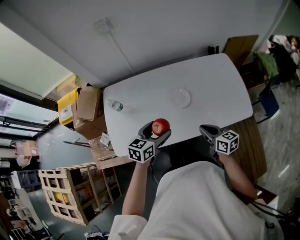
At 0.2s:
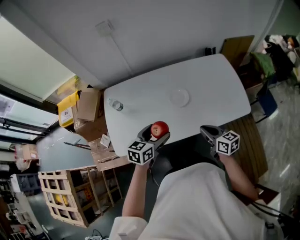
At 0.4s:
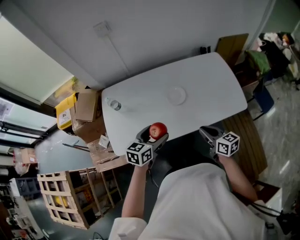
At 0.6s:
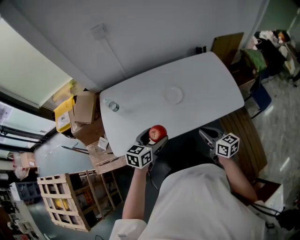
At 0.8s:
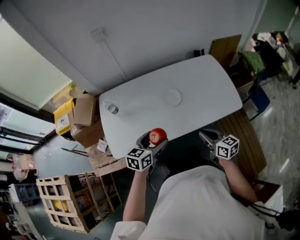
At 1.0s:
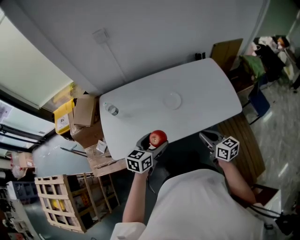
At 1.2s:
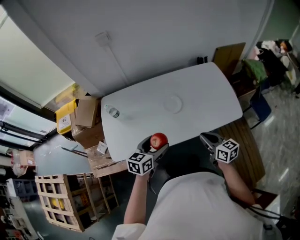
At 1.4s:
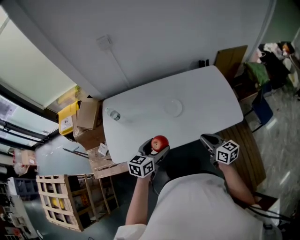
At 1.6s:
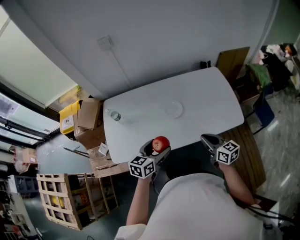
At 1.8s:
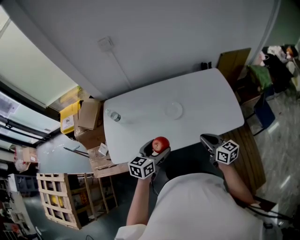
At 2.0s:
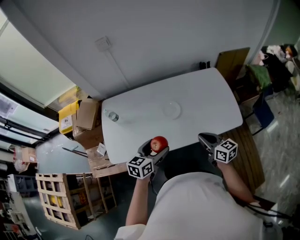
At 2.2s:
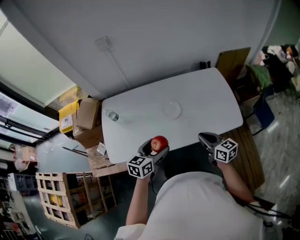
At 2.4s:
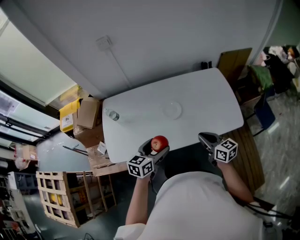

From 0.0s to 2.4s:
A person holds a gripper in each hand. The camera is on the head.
From 0.0s to 1.2s: Both grippers move backward, some 5 cm.
From 1.2s to 2.4s: The right gripper changes place by some 5 cm.

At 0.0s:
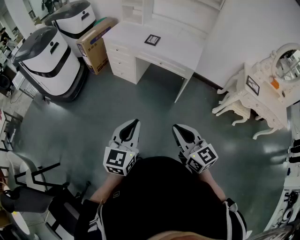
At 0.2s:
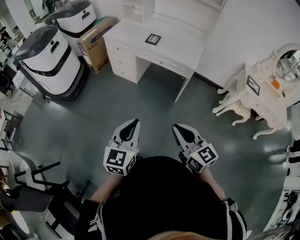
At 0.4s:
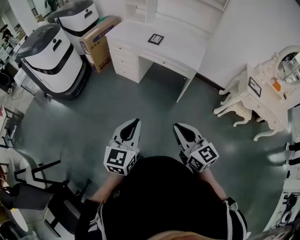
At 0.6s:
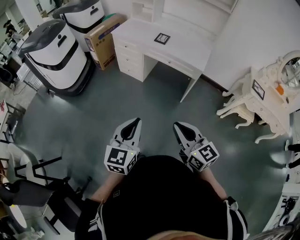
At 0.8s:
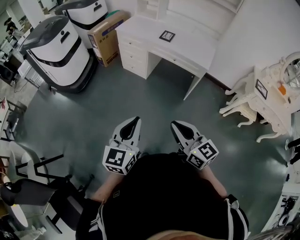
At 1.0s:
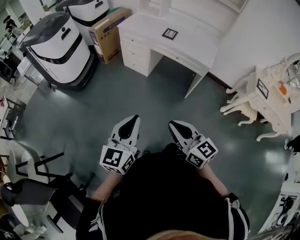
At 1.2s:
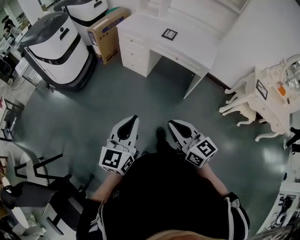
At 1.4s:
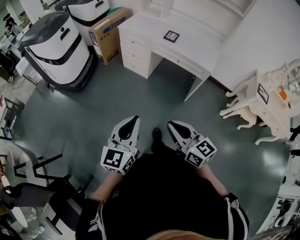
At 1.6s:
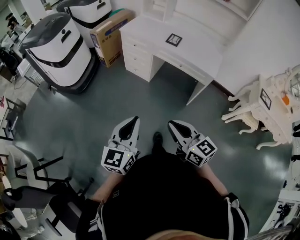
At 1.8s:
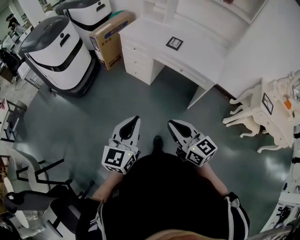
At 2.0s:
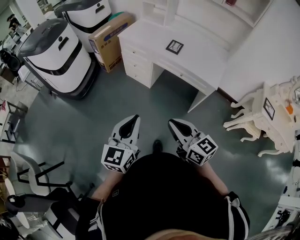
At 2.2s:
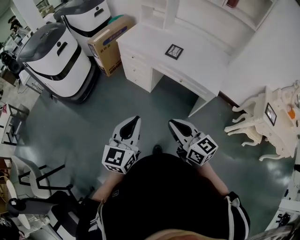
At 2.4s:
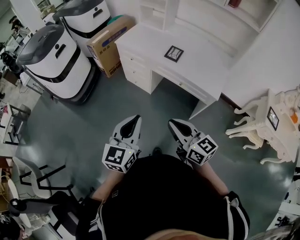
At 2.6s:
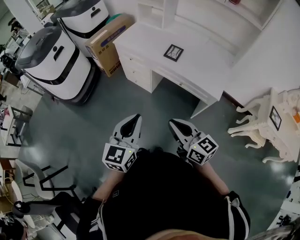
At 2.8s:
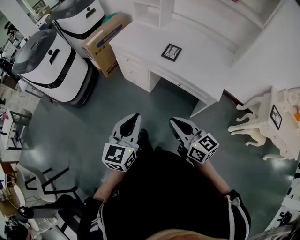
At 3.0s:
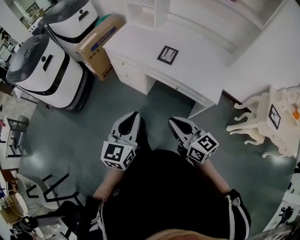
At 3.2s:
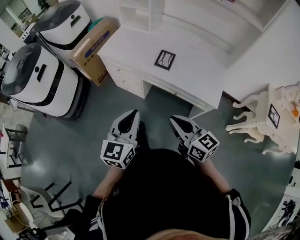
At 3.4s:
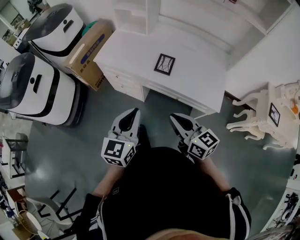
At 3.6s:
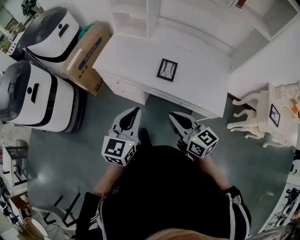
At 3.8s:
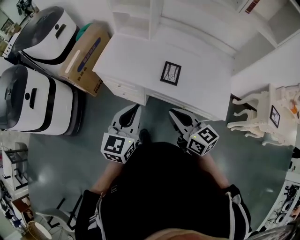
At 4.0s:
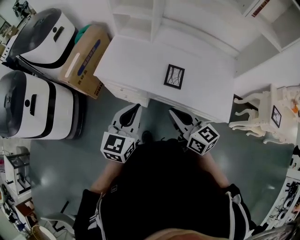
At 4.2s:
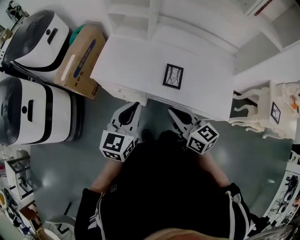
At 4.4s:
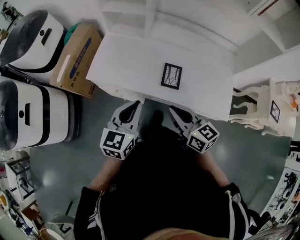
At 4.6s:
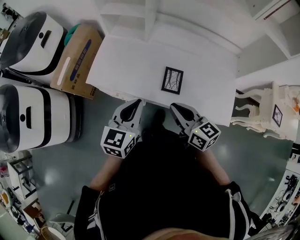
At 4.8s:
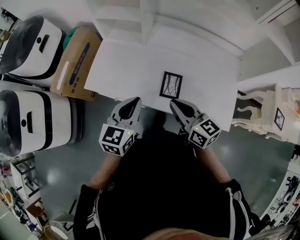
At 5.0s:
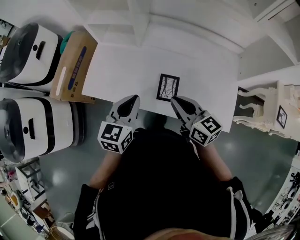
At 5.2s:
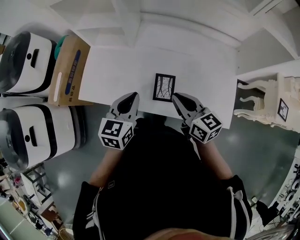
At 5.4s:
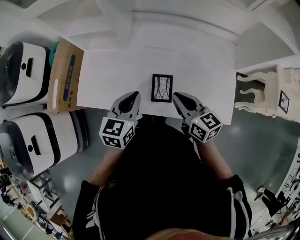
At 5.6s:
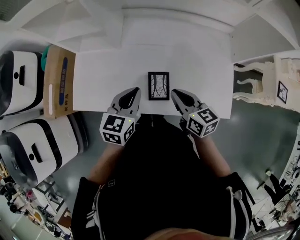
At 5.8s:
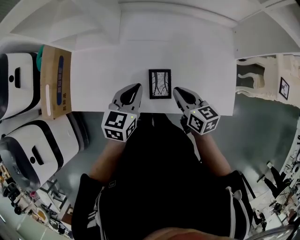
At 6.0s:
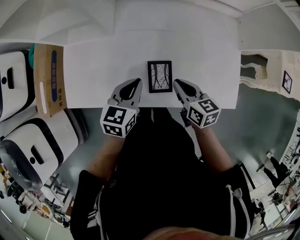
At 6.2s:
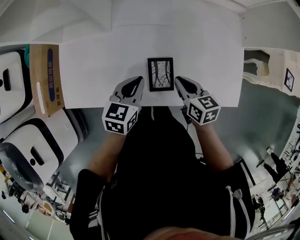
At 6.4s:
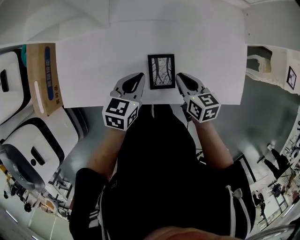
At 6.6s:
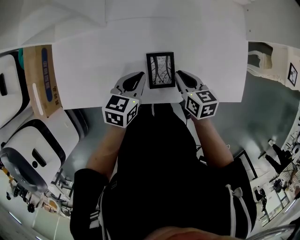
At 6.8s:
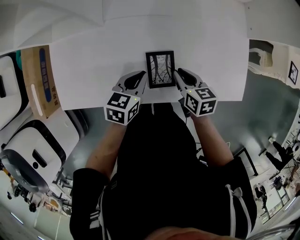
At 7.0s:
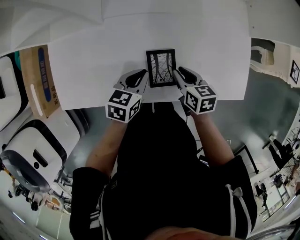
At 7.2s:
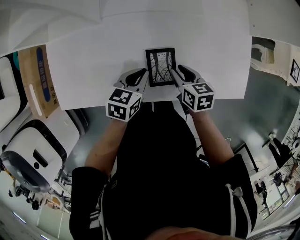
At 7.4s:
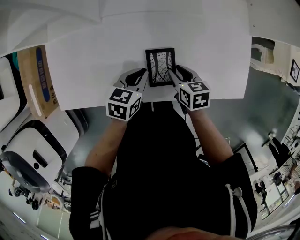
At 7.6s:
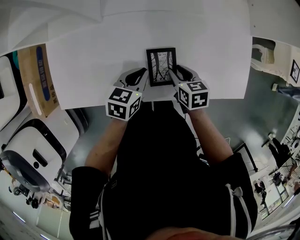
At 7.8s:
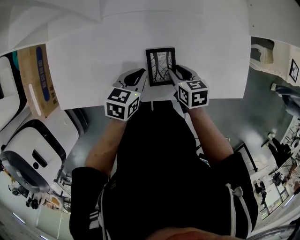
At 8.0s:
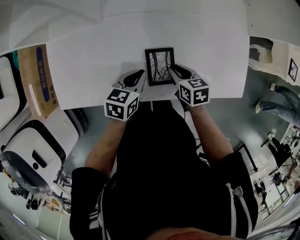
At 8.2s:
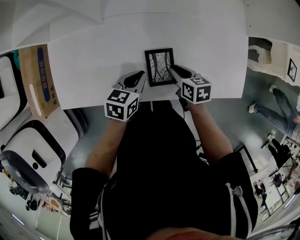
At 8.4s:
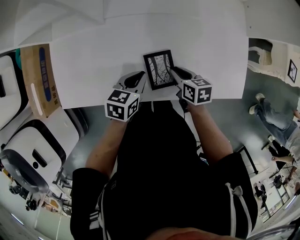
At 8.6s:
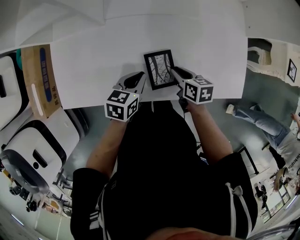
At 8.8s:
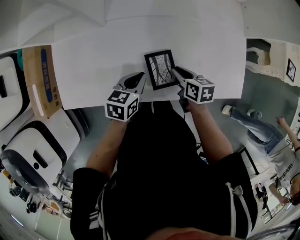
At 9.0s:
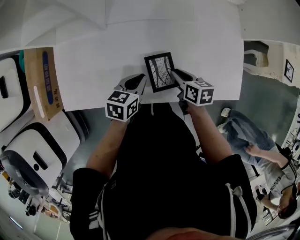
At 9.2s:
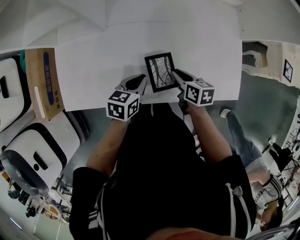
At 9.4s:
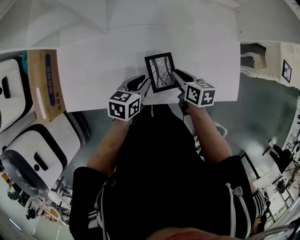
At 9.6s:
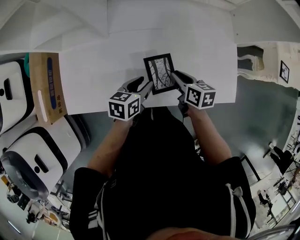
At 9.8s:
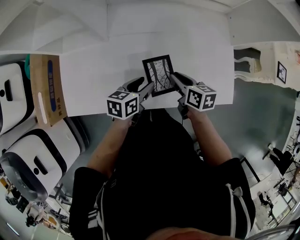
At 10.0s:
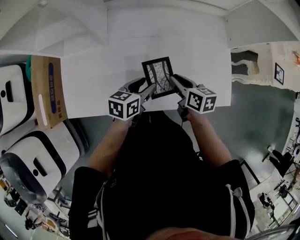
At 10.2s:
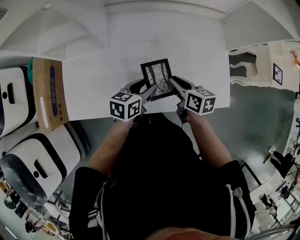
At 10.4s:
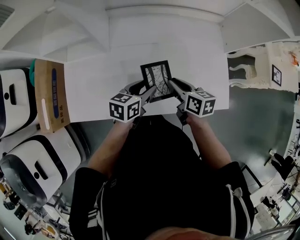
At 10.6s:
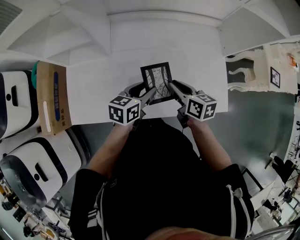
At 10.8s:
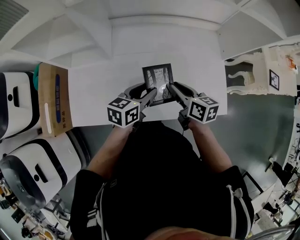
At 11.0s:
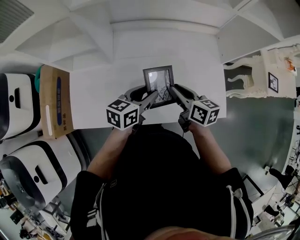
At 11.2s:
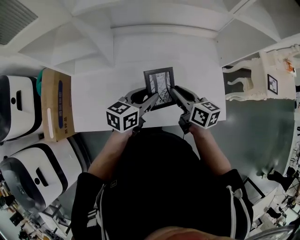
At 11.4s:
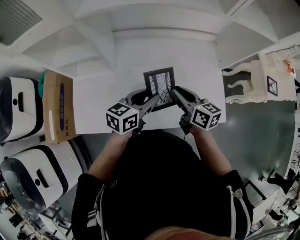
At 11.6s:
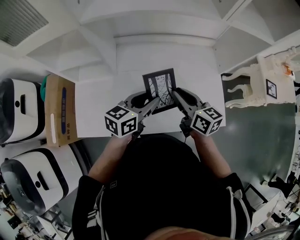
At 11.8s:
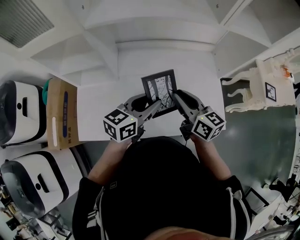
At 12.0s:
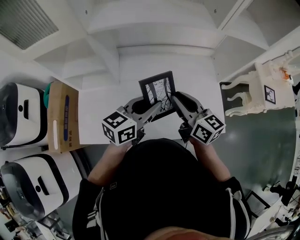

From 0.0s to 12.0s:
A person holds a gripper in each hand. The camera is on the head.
From 0.0s to 1.6s: The two grippers go about 15 cm to the left and forward.
From 1.6s to 3.0s: The two grippers go some 35 cm forward and to the right.
From 3.0s to 4.4s: Both grippers move forward, some 35 cm.
From 4.4s to 6.0s: Both grippers move forward, downward and to the right, approximately 30 cm. The left gripper swivels about 20 degrees, while the right gripper swivels roughly 30 degrees.
From 6.0s to 7.6s: The grippers both shift downward by some 15 cm. The right gripper swivels about 20 degrees, and opens its fingers.
From 7.6s to 9.0s: The grippers stay close to where they were, moving slightly.
From 9.0s to 10.4s: The left gripper goes roughly 10 cm upward, and opens its fingers. Meanwhile the right gripper heads upward, covering approximately 10 cm.
From 10.4s to 12.0s: Both grippers travel together upward, roughly 20 cm. The left gripper swivels about 30 degrees, and closes up. The right gripper changes its angle by roughly 30 degrees.

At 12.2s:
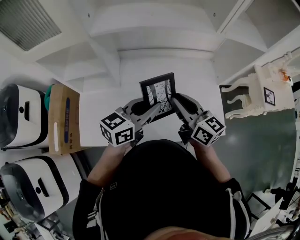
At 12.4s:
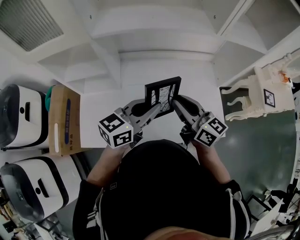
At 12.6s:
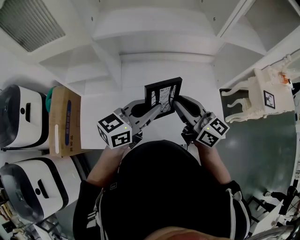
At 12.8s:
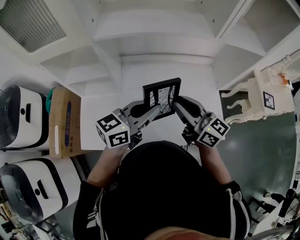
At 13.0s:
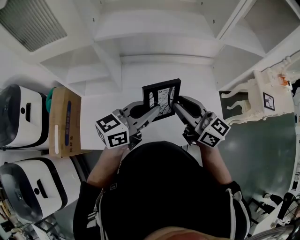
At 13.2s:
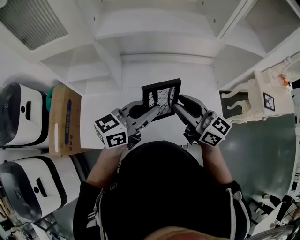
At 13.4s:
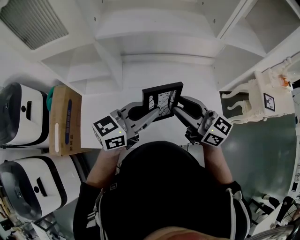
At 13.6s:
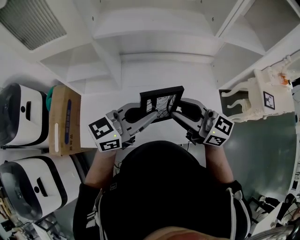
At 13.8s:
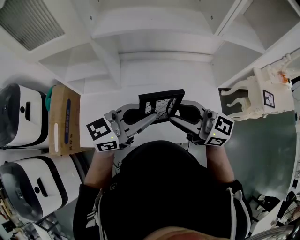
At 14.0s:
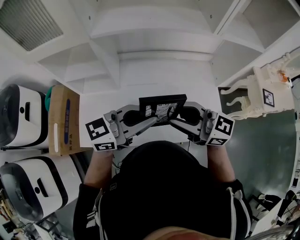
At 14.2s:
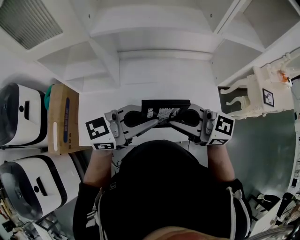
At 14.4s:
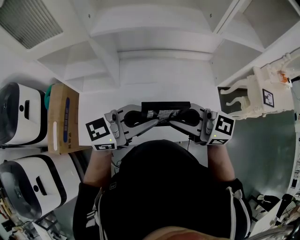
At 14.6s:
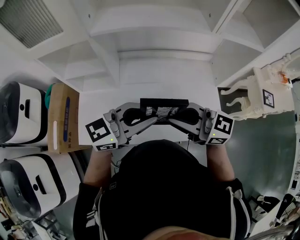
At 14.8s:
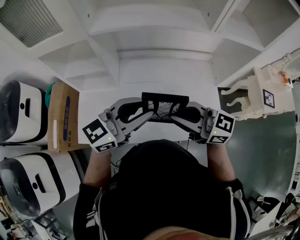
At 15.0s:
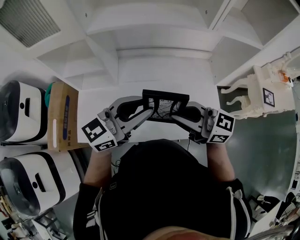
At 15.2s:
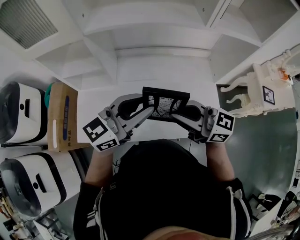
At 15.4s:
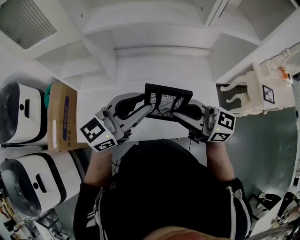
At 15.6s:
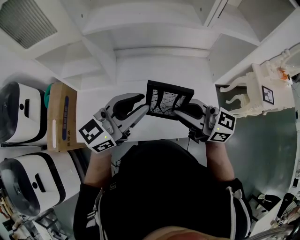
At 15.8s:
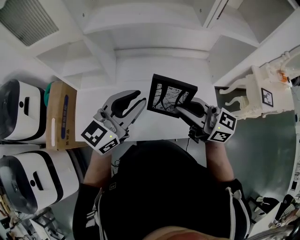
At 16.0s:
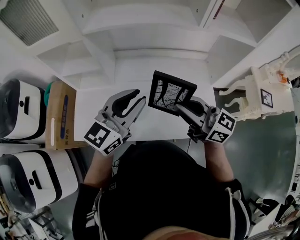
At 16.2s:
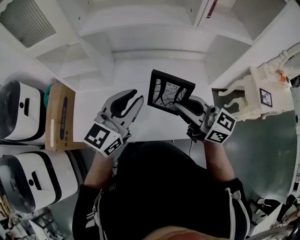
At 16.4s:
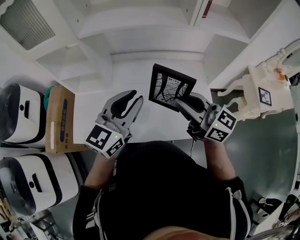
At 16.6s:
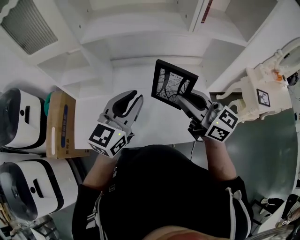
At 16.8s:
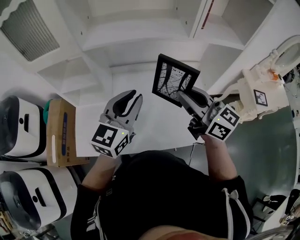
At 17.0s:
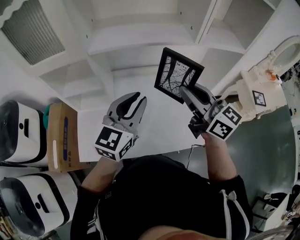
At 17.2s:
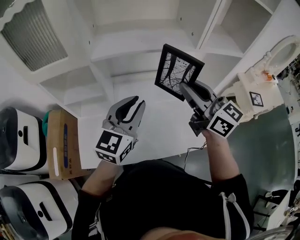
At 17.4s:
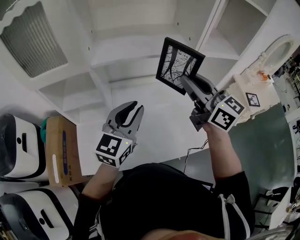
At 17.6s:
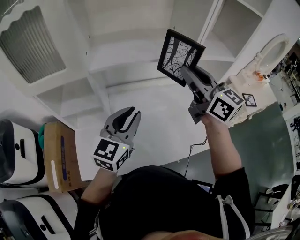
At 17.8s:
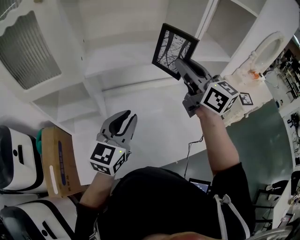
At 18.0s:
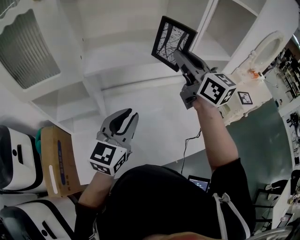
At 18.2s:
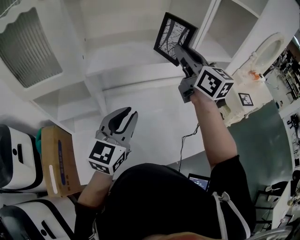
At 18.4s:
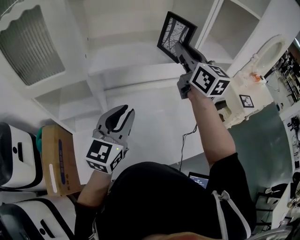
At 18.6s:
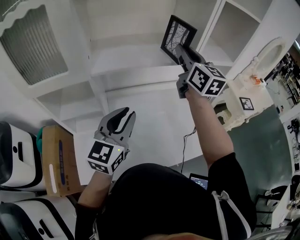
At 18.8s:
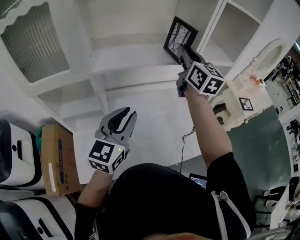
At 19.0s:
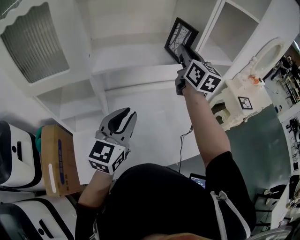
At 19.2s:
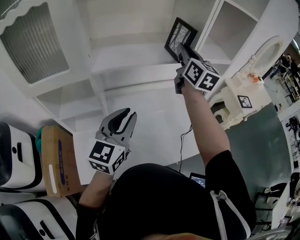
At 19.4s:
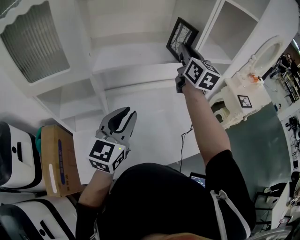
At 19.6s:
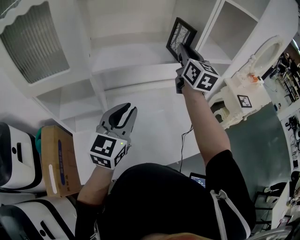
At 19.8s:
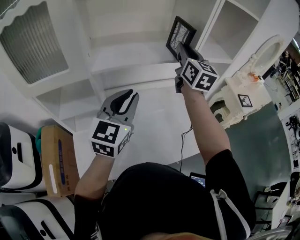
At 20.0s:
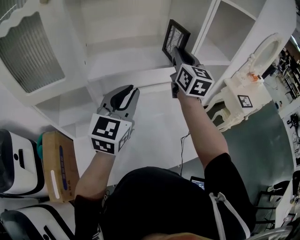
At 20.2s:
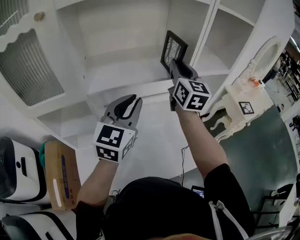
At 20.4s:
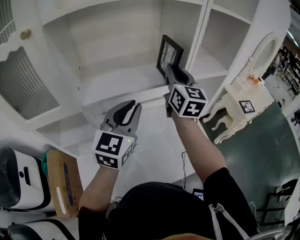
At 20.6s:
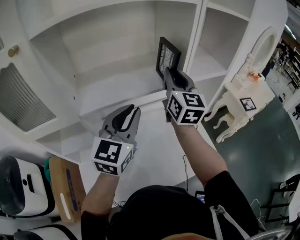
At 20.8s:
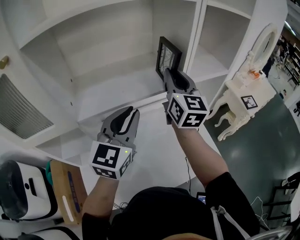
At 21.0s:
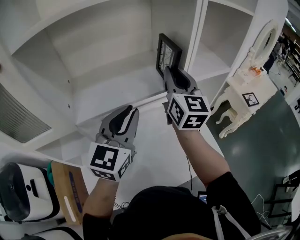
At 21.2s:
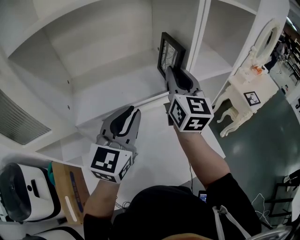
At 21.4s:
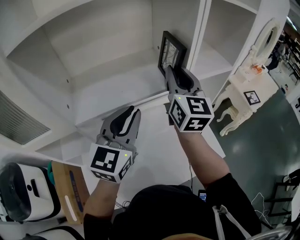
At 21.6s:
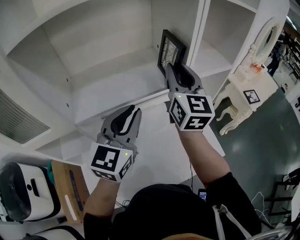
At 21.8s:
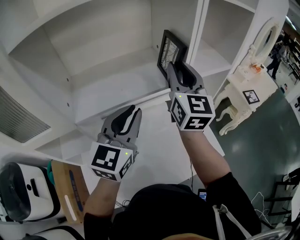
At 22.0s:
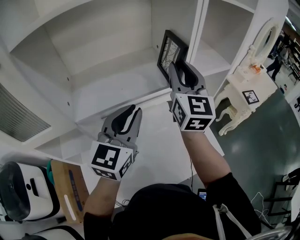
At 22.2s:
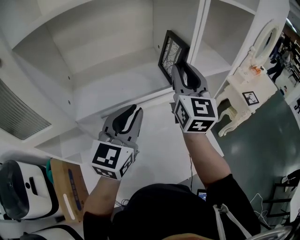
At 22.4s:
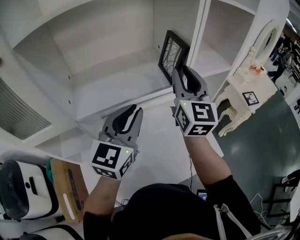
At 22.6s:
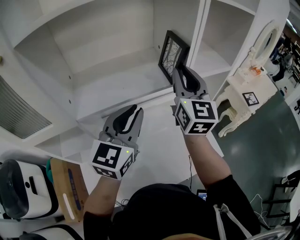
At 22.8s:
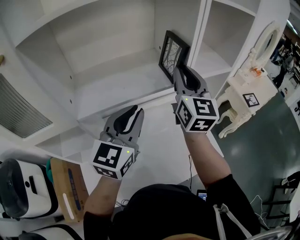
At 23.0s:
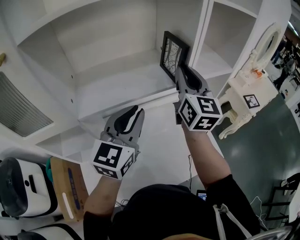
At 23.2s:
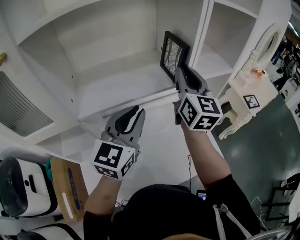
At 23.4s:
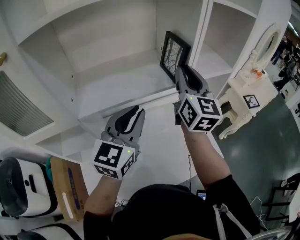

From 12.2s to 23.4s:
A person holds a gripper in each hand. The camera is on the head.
From 12.2s to 13.8s: The right gripper shifts by some 10 cm, and turns by roughly 30 degrees; the left gripper goes roughly 5 cm upward.
From 13.8s to 15.4s: There are only small adjustments of the grippers.
From 15.4s to 17.0s: The right gripper moves upward, some 10 cm, and changes its angle by approximately 30 degrees; the left gripper shifts by about 5 cm, and swivels about 30 degrees.
From 17.0s to 18.6s: The right gripper travels forward and upward by about 20 cm, and turns by approximately 30 degrees, while the left gripper travels to the left by some 5 cm.
From 18.6s to 20.2s: The left gripper shifts roughly 10 cm forward and upward.
From 20.2s to 21.8s: The left gripper shifts by some 5 cm.
From 21.8s to 23.4s: The grippers make only small movements.
